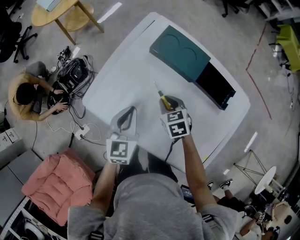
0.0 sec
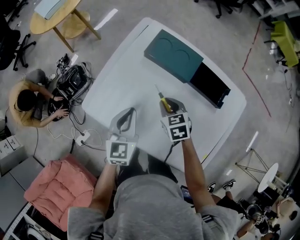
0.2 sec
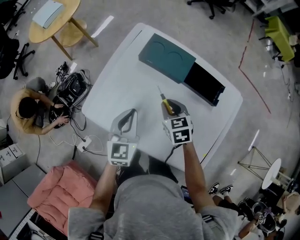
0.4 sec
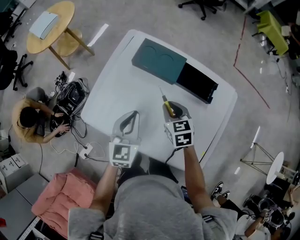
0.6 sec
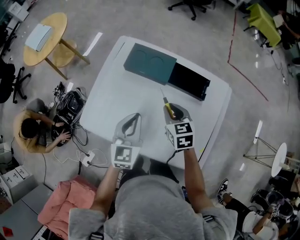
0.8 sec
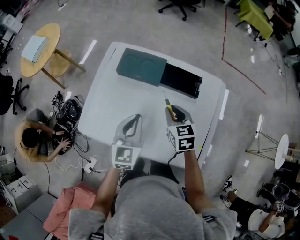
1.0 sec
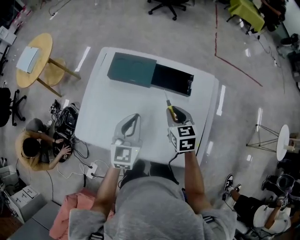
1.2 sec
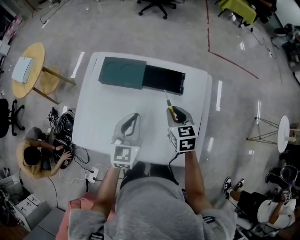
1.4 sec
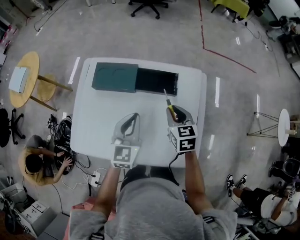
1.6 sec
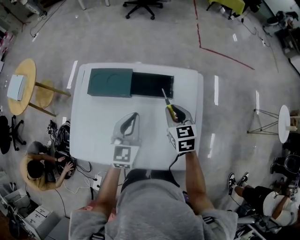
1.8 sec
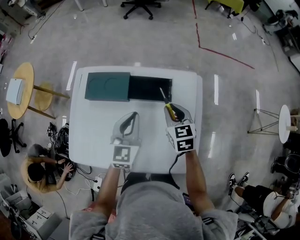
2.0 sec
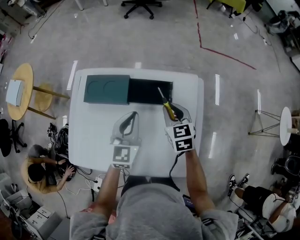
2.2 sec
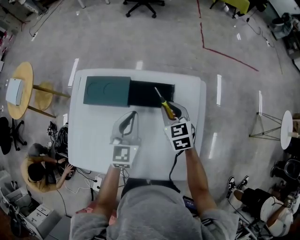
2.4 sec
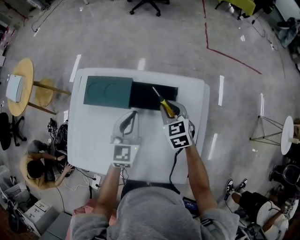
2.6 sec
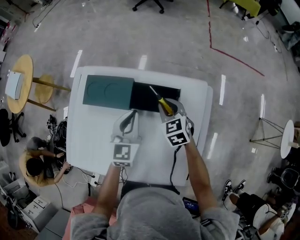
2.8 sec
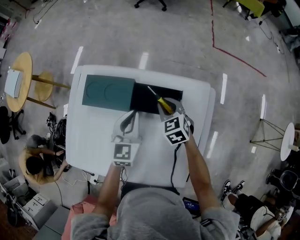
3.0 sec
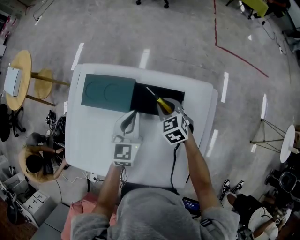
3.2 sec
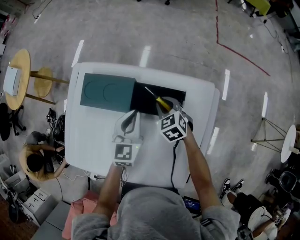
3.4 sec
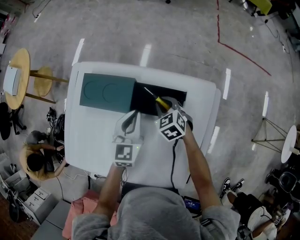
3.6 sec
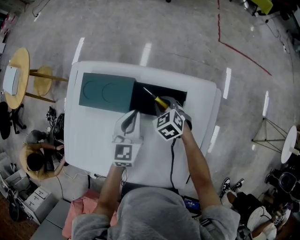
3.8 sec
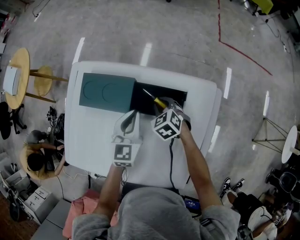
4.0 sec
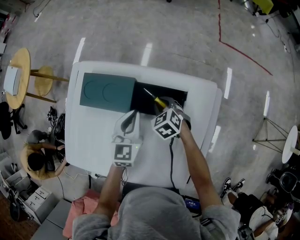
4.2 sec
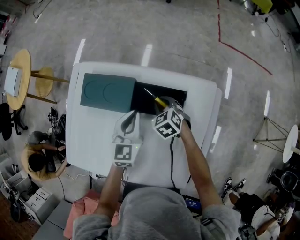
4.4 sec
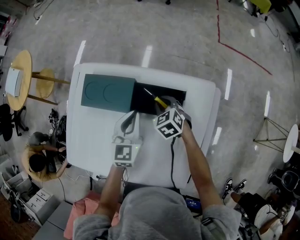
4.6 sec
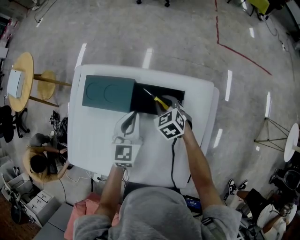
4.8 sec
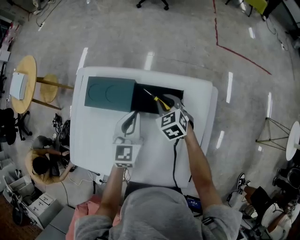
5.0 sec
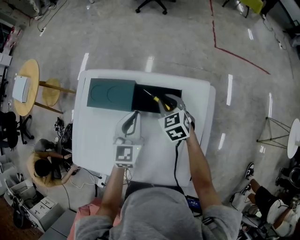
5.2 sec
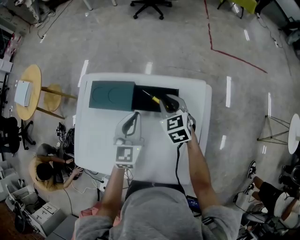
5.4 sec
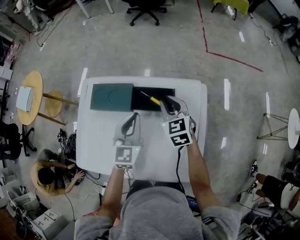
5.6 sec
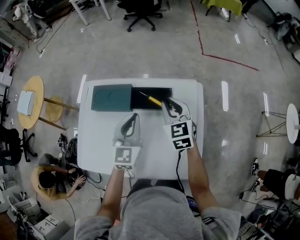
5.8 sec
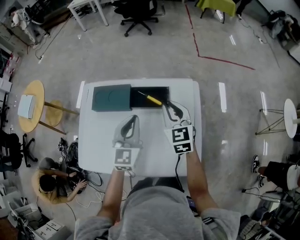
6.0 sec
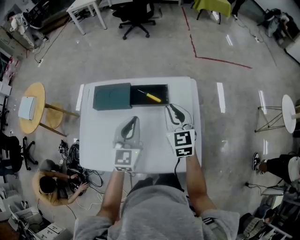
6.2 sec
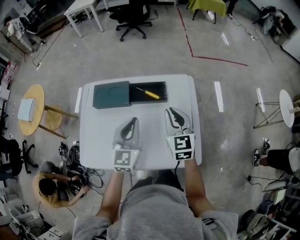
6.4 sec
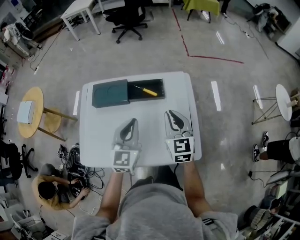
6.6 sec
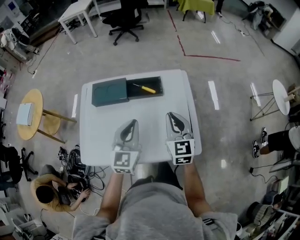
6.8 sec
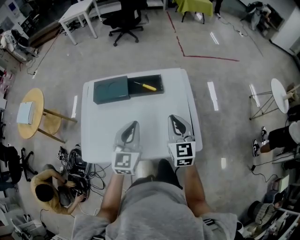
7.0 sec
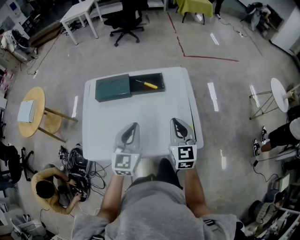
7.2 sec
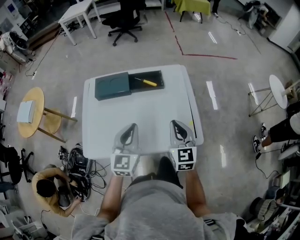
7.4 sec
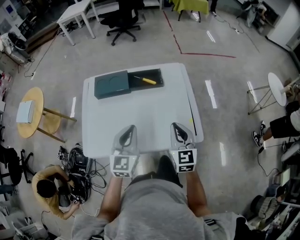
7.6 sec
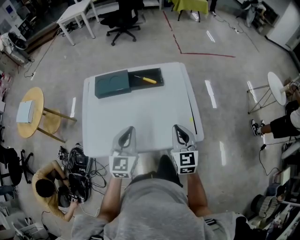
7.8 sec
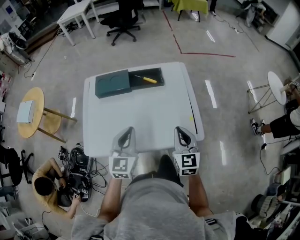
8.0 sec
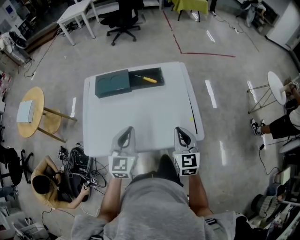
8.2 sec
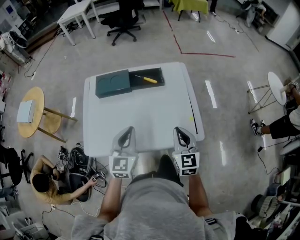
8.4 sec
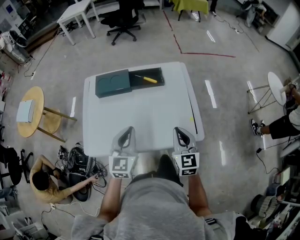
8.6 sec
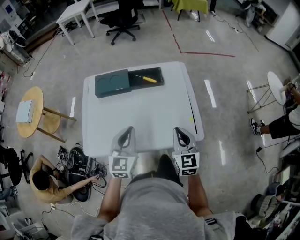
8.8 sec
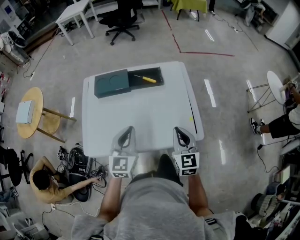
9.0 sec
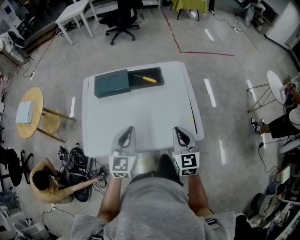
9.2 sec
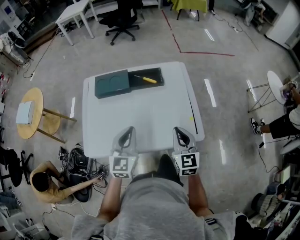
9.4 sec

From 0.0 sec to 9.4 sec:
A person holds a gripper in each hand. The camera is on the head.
From 0.0 sec to 1.6 sec: The right gripper shifts by roughly 30 cm, and swivels approximately 40 degrees, while the left gripper moves about 25 cm, and turns by about 30 degrees.
From 1.6 sec to 3.2 sec: Both grippers travel together forward and downward, some 20 cm. The right gripper rotates some 30 degrees.
From 3.2 sec to 4.8 sec: The grippers move only a little.
From 4.8 sec to 6.2 sec: The left gripper travels backward and upward by roughly 20 cm. Meanwhile the right gripper travels upward and backward by roughly 30 cm, and tilts its fingers approximately 30 degrees upward.
From 6.2 sec to 7.8 sec: Both grippers move backward, about 25 cm.
From 7.8 sec to 9.4 sec: The grippers make only small movements.

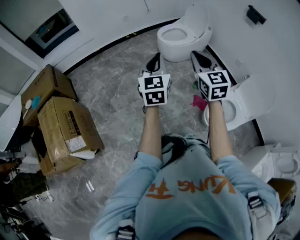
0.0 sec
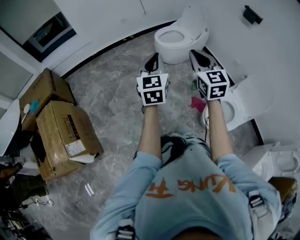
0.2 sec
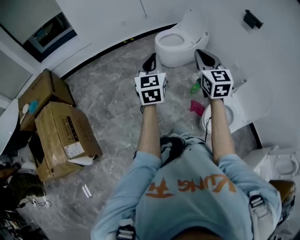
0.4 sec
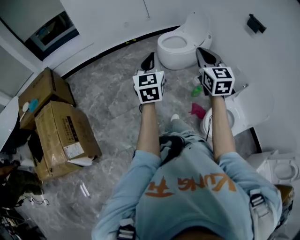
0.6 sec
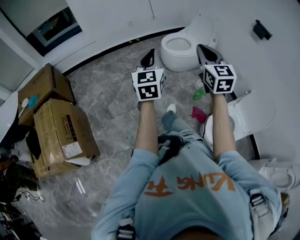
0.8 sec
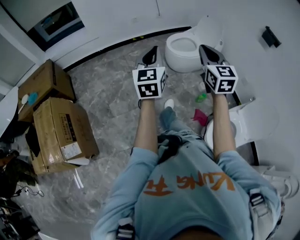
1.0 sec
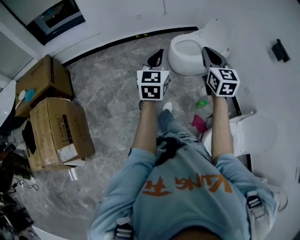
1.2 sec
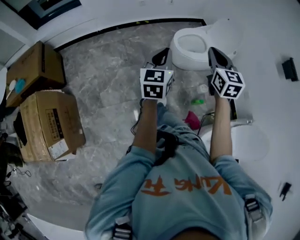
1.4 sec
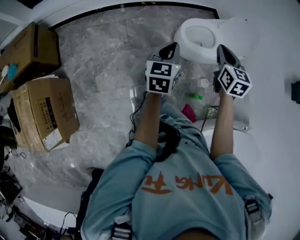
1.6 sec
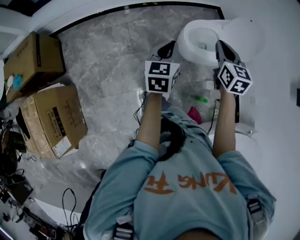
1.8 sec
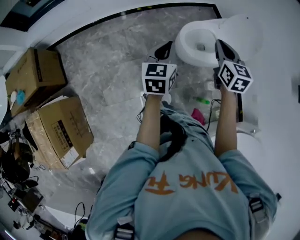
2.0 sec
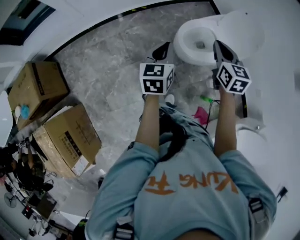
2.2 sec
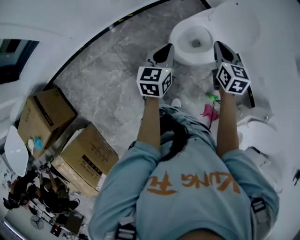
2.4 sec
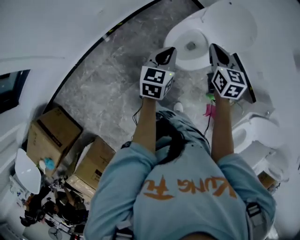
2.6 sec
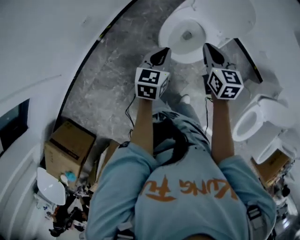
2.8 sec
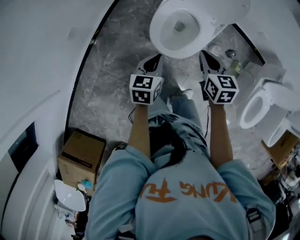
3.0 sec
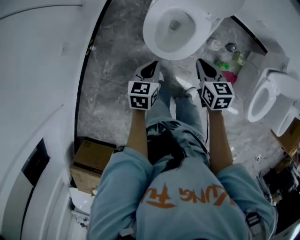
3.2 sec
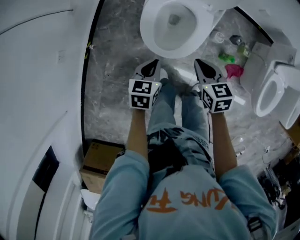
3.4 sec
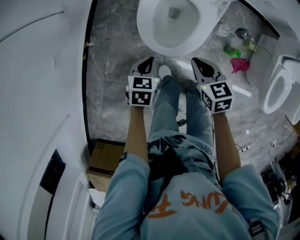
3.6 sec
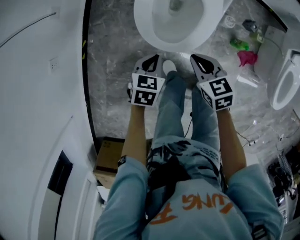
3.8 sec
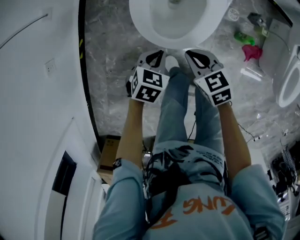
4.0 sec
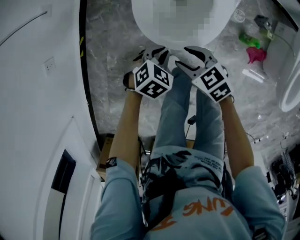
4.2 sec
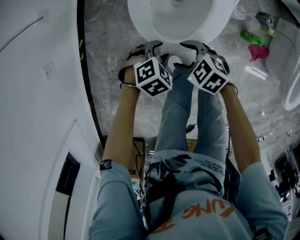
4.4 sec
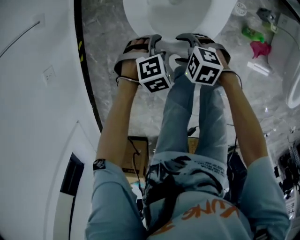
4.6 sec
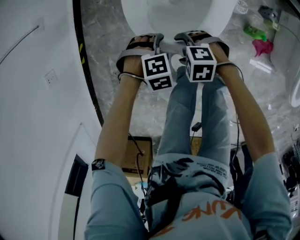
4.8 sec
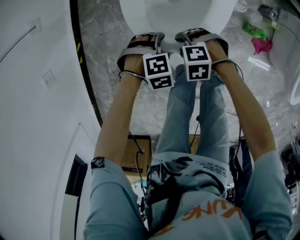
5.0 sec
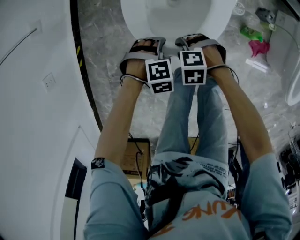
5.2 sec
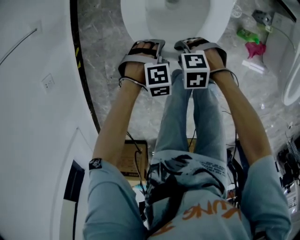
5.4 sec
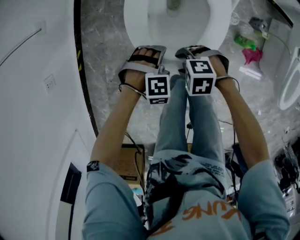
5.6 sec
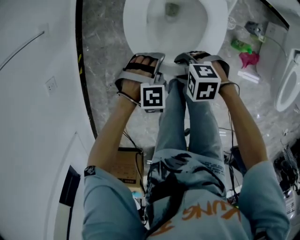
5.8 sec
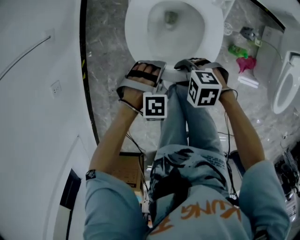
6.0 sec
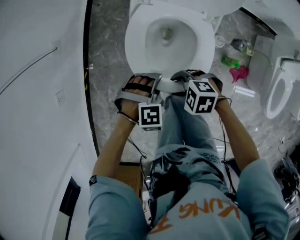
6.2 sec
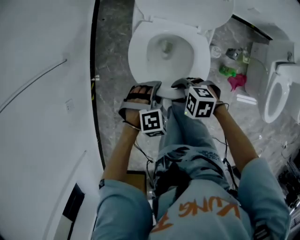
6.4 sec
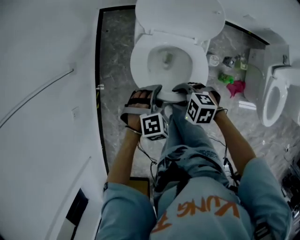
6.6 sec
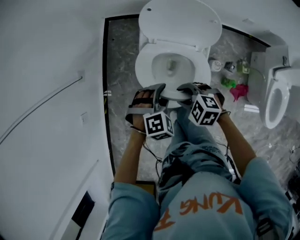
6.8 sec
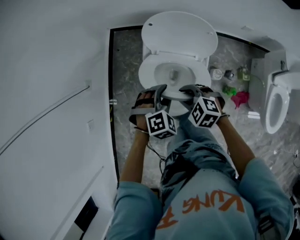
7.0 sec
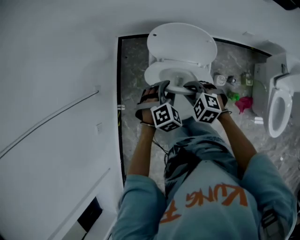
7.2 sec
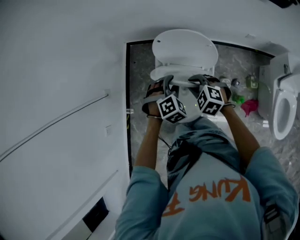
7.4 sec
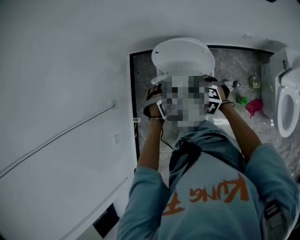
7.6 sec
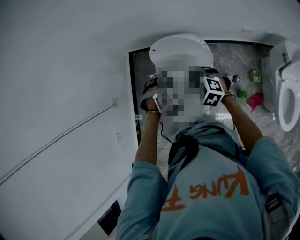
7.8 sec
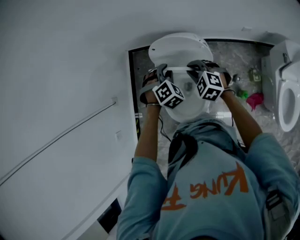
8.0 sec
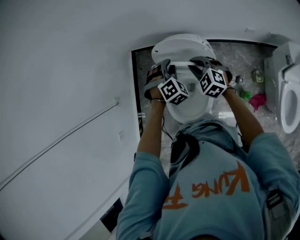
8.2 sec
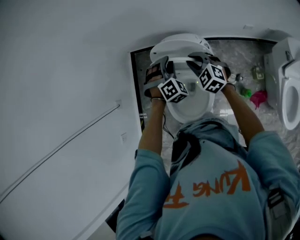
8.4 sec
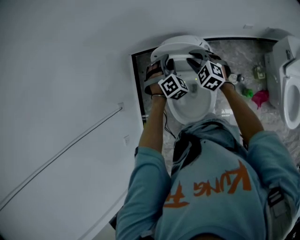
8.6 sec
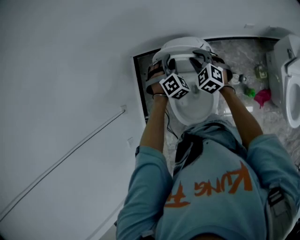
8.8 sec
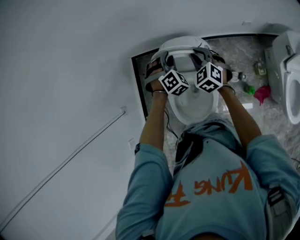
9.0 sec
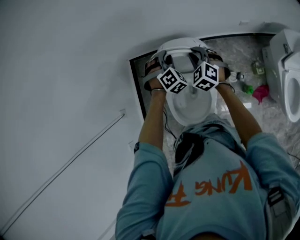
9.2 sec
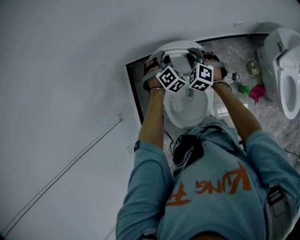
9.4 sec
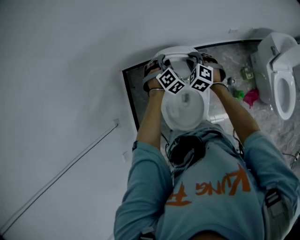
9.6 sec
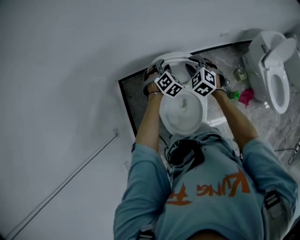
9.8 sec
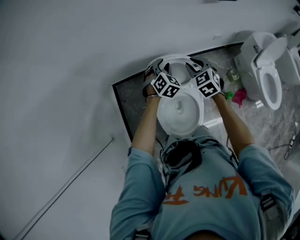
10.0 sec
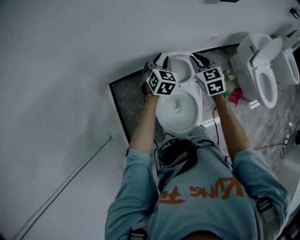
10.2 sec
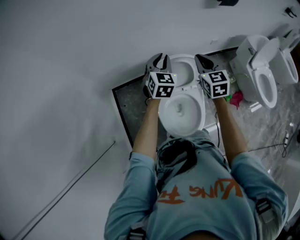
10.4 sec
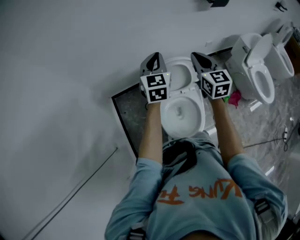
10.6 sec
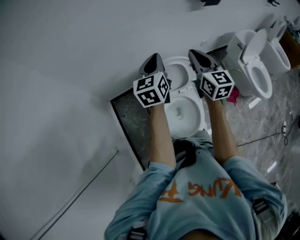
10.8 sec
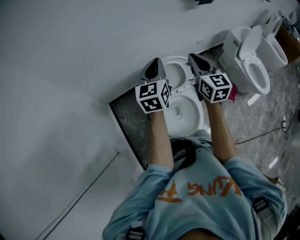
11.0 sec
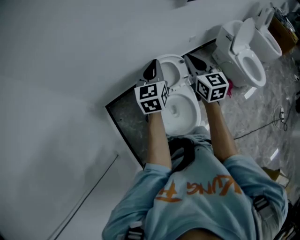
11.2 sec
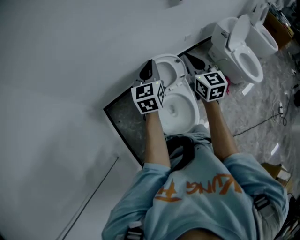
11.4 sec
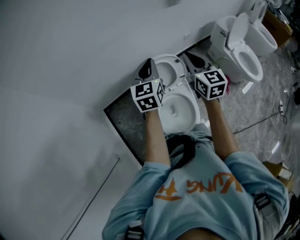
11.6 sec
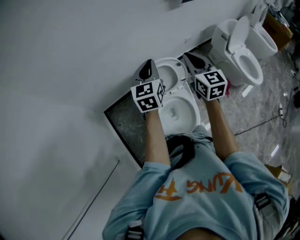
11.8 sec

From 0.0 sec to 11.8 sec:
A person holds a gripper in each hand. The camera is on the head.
From 0.0 sec to 1.4 sec: Both grippers travel together forward, about 35 cm.
From 1.4 sec to 3.0 sec: The left gripper shifts by roughly 50 cm, and rotates some 60 degrees. Meanwhile the right gripper moves approximately 50 cm, and changes its angle by some 50 degrees.
From 3.0 sec to 4.4 sec: The grippers both shift downward by approximately 30 cm. The right gripper swivels some 40 degrees, and opens its fingers; the left gripper tilts its fingers about 30 degrees downward, and opens up.
From 4.4 sec to 6.0 sec: The grippers both shift upward by roughly 5 cm. The left gripper rotates approximately 40 degrees, while the right gripper swivels about 30 degrees.
From 6.0 sec to 7.4 sec: The left gripper is displaced upward by about 25 cm, and rotates approximately 30 degrees; the right gripper ends up some 35 cm from where it was, turns by some 40 degrees, and closes.
From 7.4 sec to 8.8 sec: Both grippers travel together forward and to the right, some 20 cm. The right gripper swivels roughly 30 degrees.
From 8.8 sec to 10.4 sec: The two grippers go some 15 cm upward. The left gripper turns by some 50 degrees. Meanwhile the right gripper rotates about 50 degrees, and closes.
From 10.4 sec to 11.8 sec: The left gripper travels upward by some 5 cm, and swivels approximately 30 degrees. The right gripper is displaced upward and backward by roughly 10 cm.

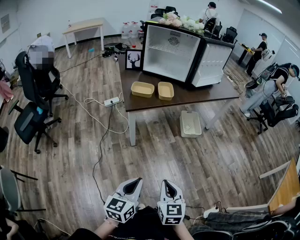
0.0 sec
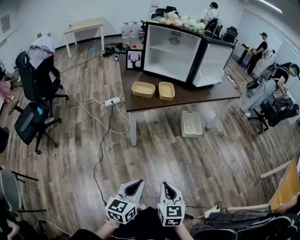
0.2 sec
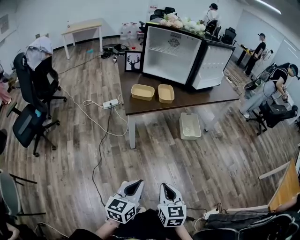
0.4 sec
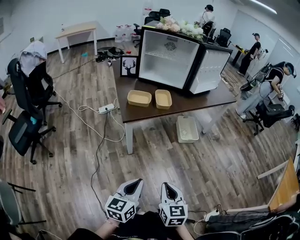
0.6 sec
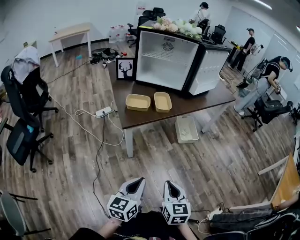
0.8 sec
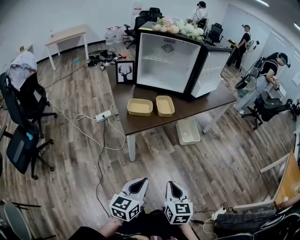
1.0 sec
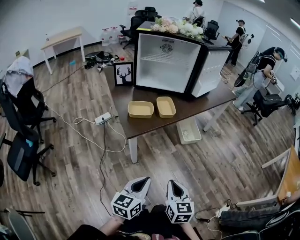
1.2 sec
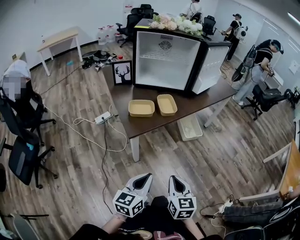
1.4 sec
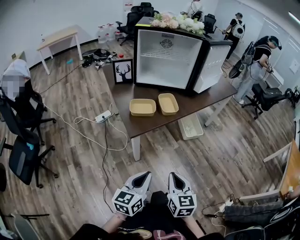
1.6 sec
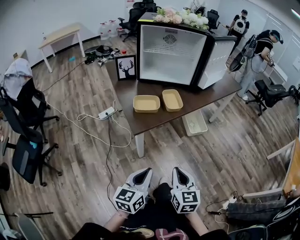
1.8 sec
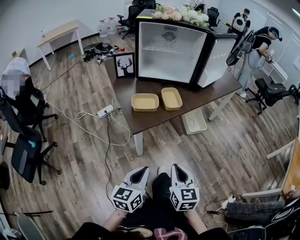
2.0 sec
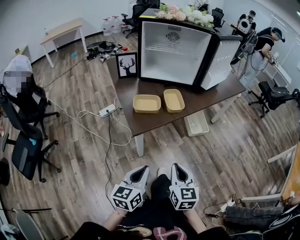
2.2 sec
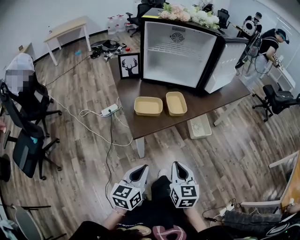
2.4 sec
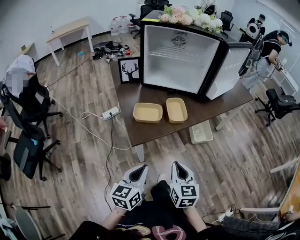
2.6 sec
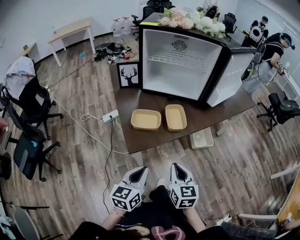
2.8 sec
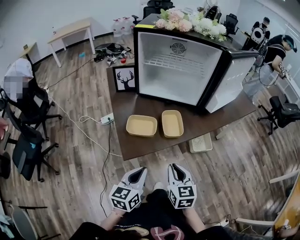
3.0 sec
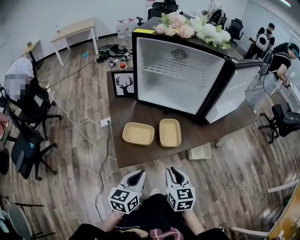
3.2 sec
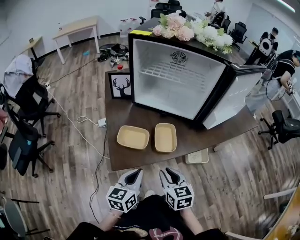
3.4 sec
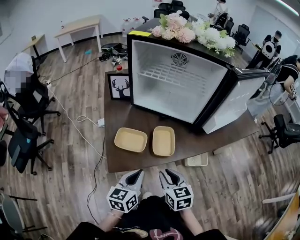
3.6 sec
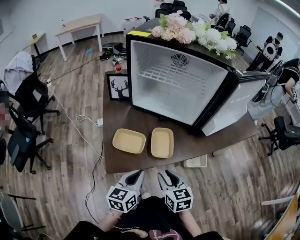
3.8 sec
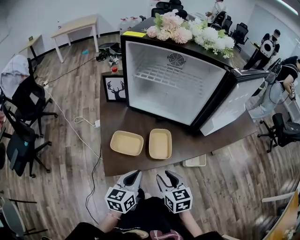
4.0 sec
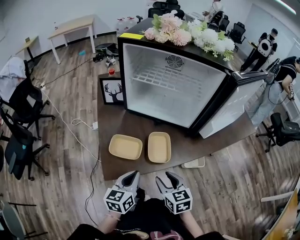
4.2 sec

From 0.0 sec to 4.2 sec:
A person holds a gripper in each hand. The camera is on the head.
From 0.0 sec to 1.4 sec: Both grippers move forward and to the left, roughly 20 cm.
From 1.4 sec to 2.8 sec: Both grippers move forward, about 20 cm.
From 2.8 sec to 4.2 sec: The grippers both shift forward and to the right by roughly 15 cm. The right gripper rotates some 20 degrees, and opens up.
